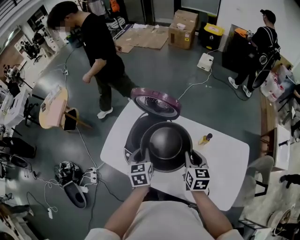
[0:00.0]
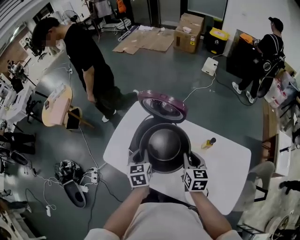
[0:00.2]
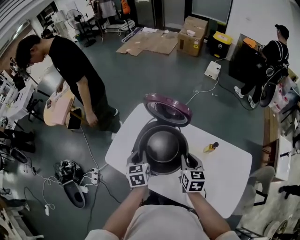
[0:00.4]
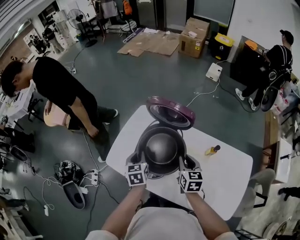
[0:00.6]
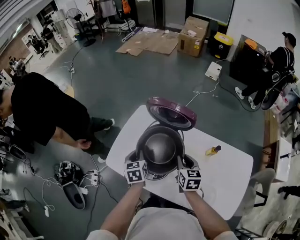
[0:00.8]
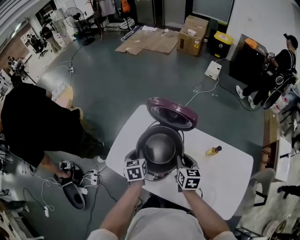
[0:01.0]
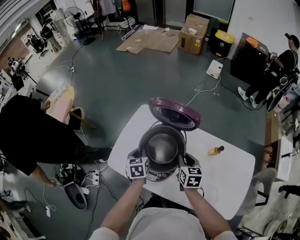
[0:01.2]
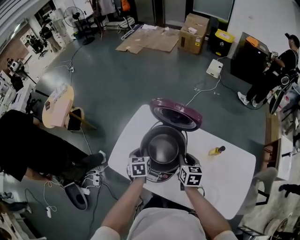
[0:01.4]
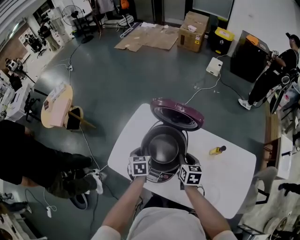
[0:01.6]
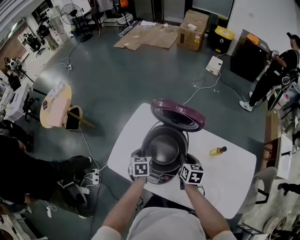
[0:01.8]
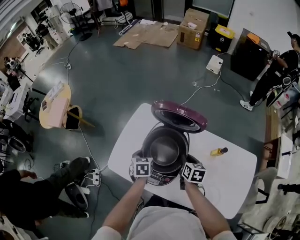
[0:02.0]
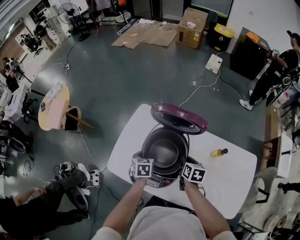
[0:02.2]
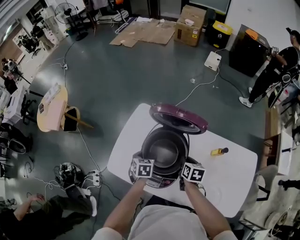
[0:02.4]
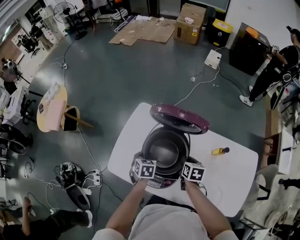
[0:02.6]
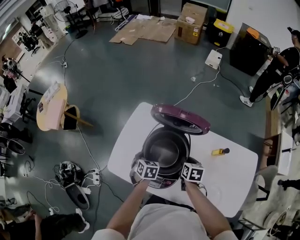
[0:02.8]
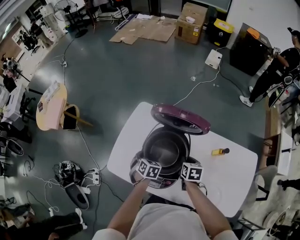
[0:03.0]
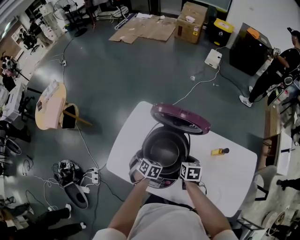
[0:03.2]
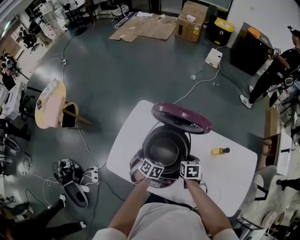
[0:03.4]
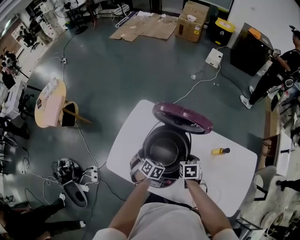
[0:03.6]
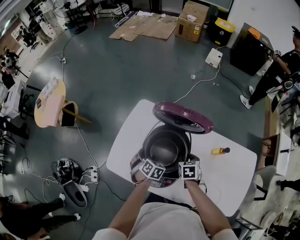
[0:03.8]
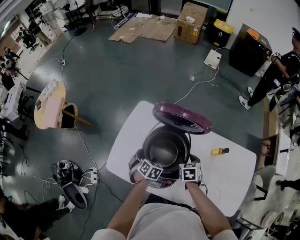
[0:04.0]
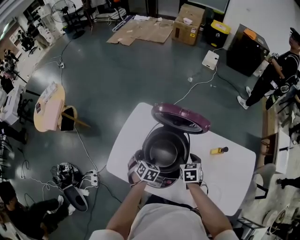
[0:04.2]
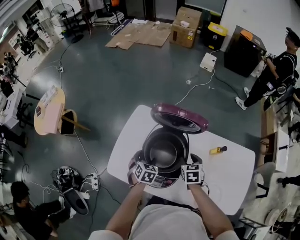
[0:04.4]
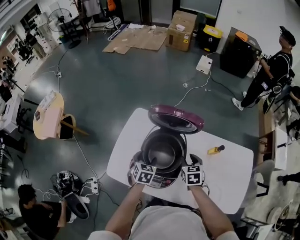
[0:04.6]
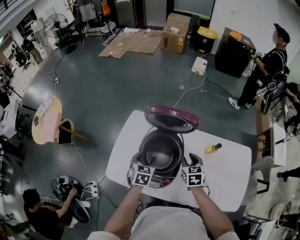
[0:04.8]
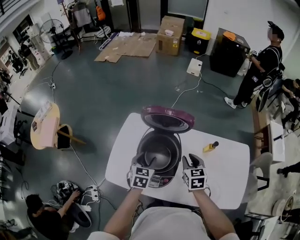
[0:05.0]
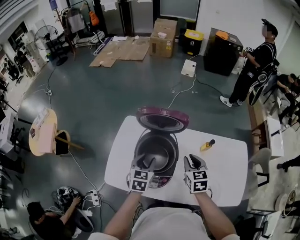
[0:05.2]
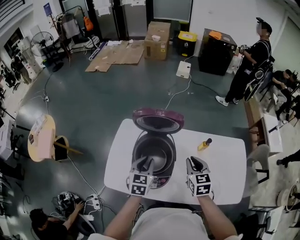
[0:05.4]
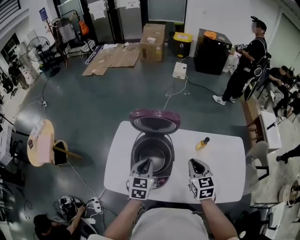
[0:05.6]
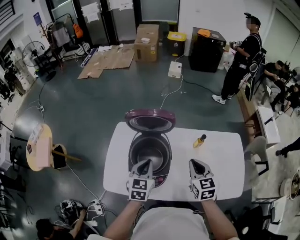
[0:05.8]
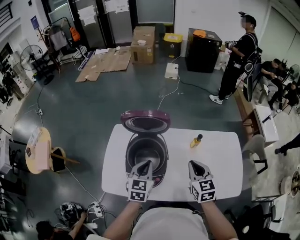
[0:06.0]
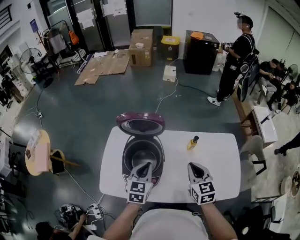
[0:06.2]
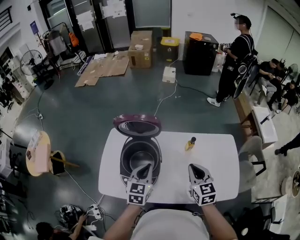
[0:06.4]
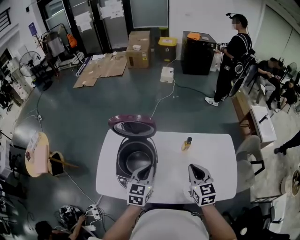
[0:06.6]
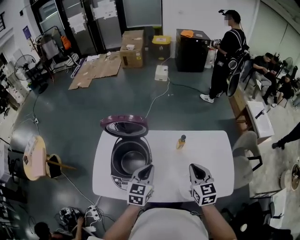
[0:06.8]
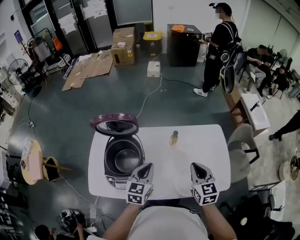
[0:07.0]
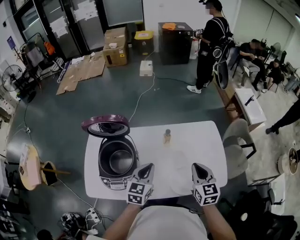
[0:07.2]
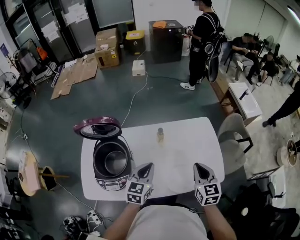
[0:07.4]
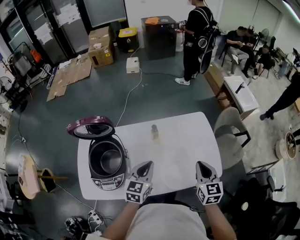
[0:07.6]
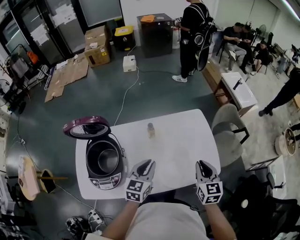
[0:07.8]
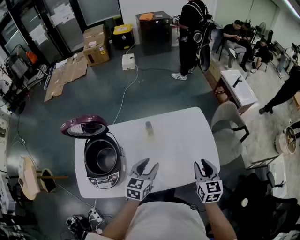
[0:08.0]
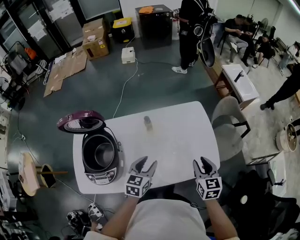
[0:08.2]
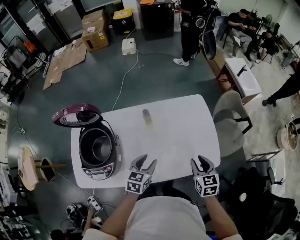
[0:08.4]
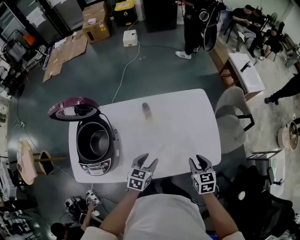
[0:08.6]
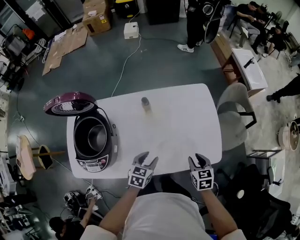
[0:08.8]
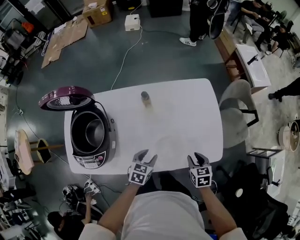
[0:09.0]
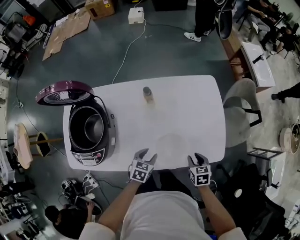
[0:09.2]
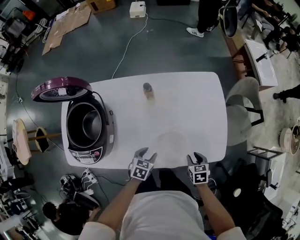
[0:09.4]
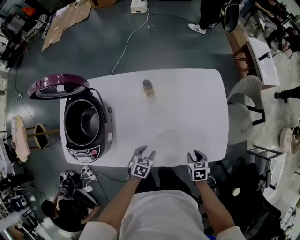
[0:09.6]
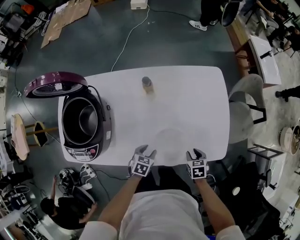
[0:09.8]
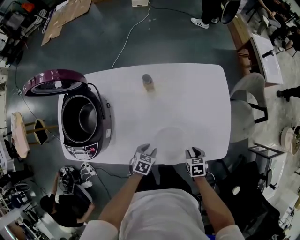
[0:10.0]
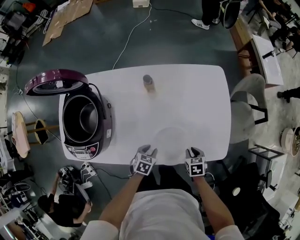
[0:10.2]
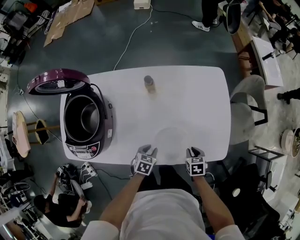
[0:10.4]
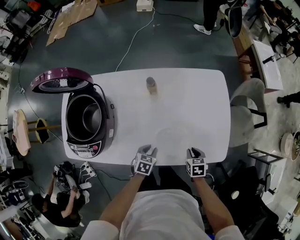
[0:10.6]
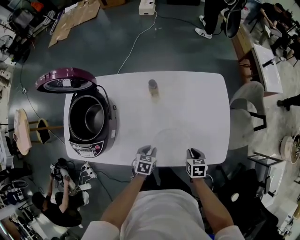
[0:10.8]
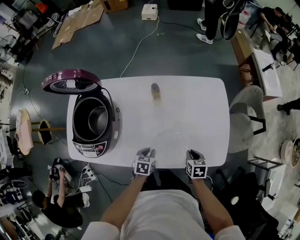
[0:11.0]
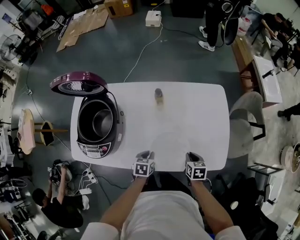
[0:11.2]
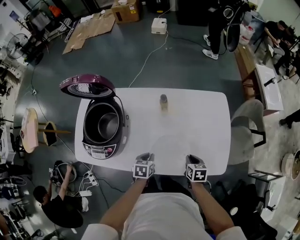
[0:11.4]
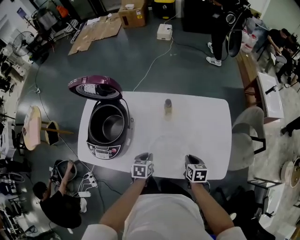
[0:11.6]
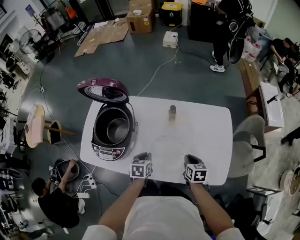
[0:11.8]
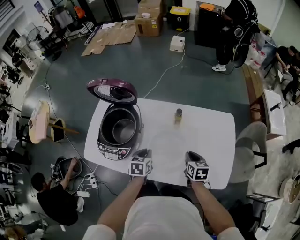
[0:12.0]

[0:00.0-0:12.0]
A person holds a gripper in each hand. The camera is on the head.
0:00.0 to 0:01.6: The grippers both shift to the left, downward and forward by about 15 cm.
0:01.6 to 0:03.0: The two grippers go roughly 5 cm downward. The left gripper changes its angle by about 30 degrees.
0:03.0 to 0:04.4: The right gripper opens up. Meanwhile the left gripper opens up.
0:04.4 to 0:06.0: The left gripper moves upward and to the right, about 20 cm, swivels roughly 30 degrees, and closes up, while the right gripper goes about 25 cm upward, backward and to the right, changes its angle by some 30 degrees, and closes up.
0:06.0 to 0:07.6: Both grippers travel together to the right, roughly 25 cm. The right gripper turns by some 20 degrees. Meanwhile the left gripper rotates roughly 20 degrees.
0:07.6 to 0:09.0: Both grippers move downward, about 25 cm. The left gripper rotates about 30 degrees, and opens its fingers; the right gripper turns by some 30 degrees, and opens its fingers.
0:09.0 to 0:10.4: Both grippers travel together downward, some 10 cm.
0:10.4 to 0:12.0: The left gripper goes about 25 cm upward and to the left, and rotates approximately 30 degrees; the right gripper goes approximately 25 cm upward, to the left and forward, and rotates some 20 degrees.

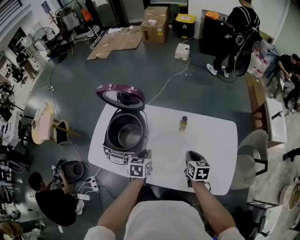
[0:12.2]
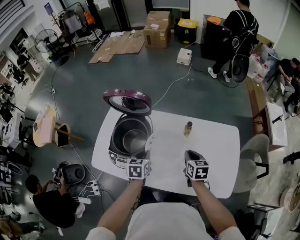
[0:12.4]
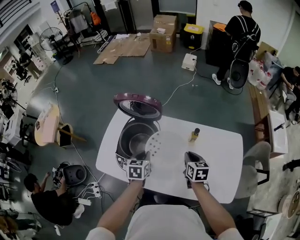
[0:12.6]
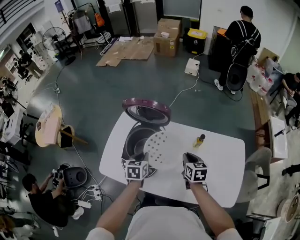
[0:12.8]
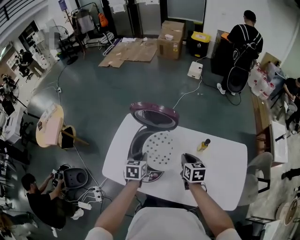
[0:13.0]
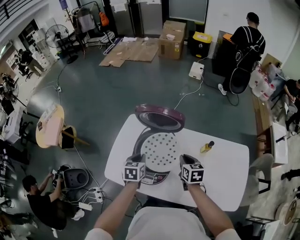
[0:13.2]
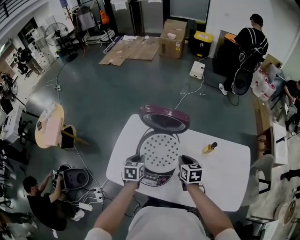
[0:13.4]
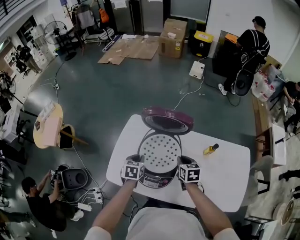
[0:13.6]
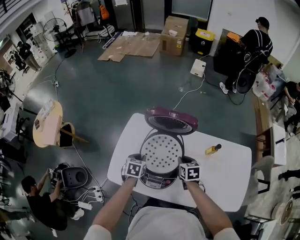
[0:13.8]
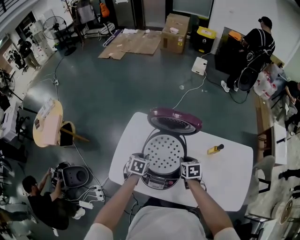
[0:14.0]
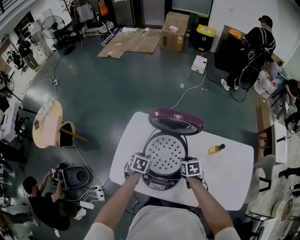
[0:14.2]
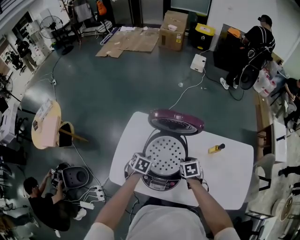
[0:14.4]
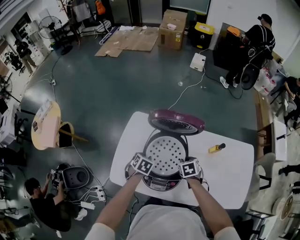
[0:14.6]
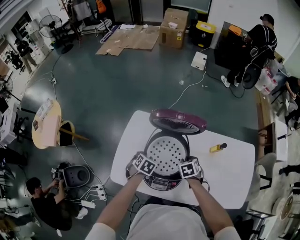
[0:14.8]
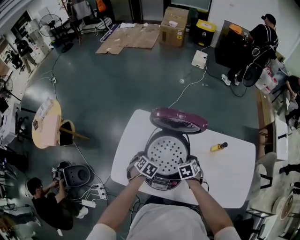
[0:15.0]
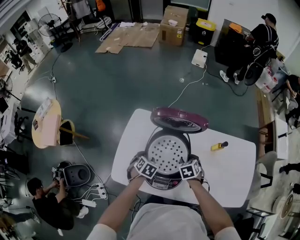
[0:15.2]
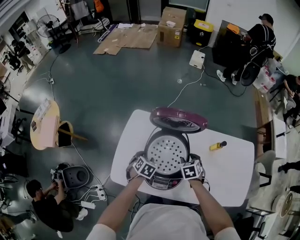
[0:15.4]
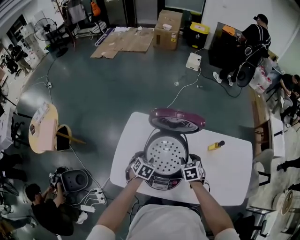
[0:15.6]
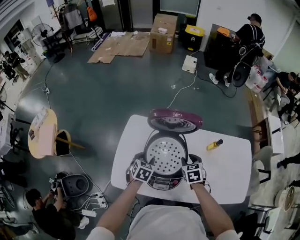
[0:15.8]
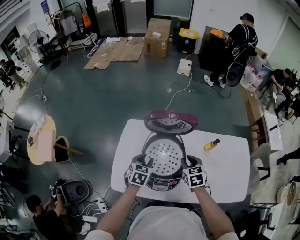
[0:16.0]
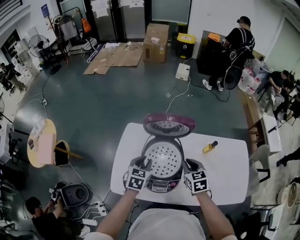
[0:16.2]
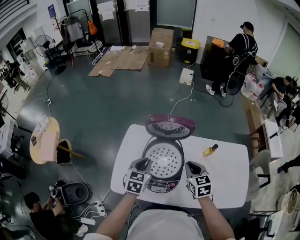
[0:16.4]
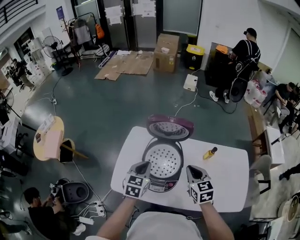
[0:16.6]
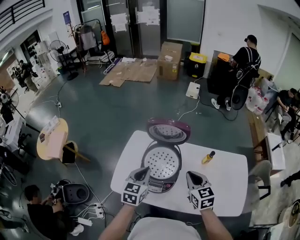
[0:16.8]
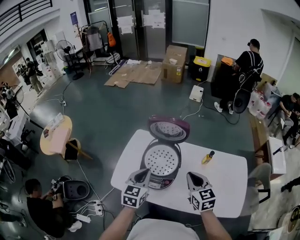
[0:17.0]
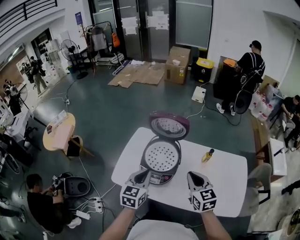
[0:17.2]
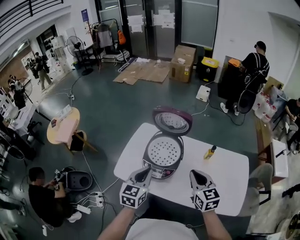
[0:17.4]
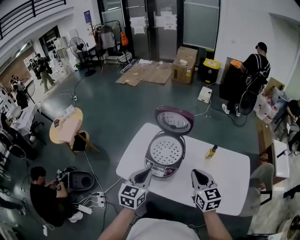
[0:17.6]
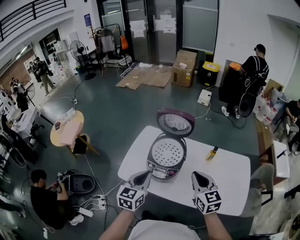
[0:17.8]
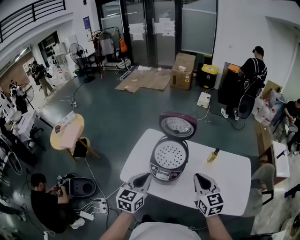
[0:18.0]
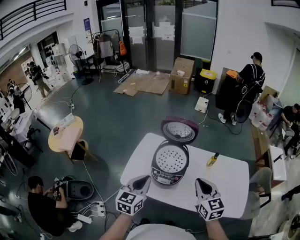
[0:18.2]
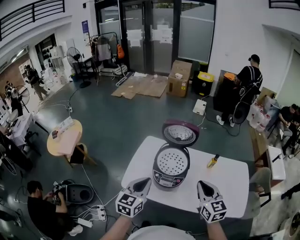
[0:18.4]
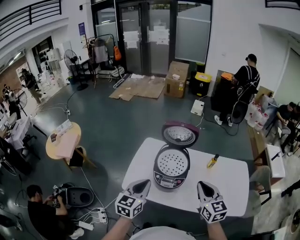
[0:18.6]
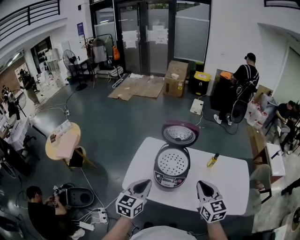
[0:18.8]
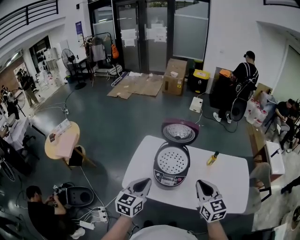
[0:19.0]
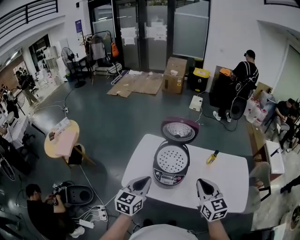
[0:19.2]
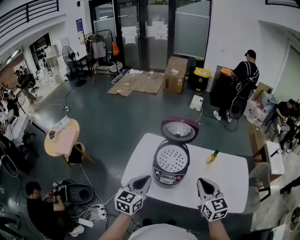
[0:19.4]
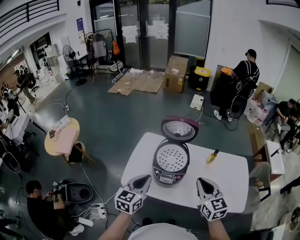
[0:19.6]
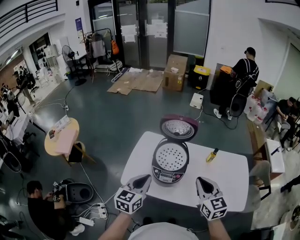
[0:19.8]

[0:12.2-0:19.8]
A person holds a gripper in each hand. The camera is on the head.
0:12.2 to 0:13.8: The two grippers go roughly 30 cm to the left and forward.
0:13.8 to 0:15.2: The left gripper moves downward, about 5 cm, turns by about 20 degrees, and opens up, while the right gripper turns by about 20 degrees, and opens its fingers.
0:15.2 to 0:16.8: The left gripper heads upward, covering roughly 25 cm, tilts its fingers roughly 40 degrees upward, and closes its fingers. The right gripper goes roughly 25 cm upward and backward, tips its fingers upward by approximately 40 degrees, and closes.
0:16.8 to 0:18.2: Both grippers move backward and upward, approximately 15 cm.
0:18.2 to 0:19.8: The grippers make only small movements.

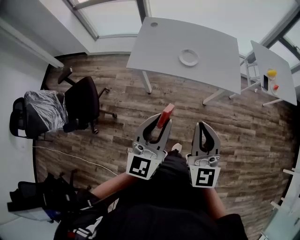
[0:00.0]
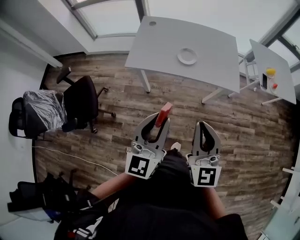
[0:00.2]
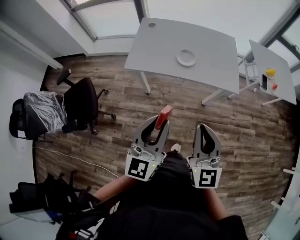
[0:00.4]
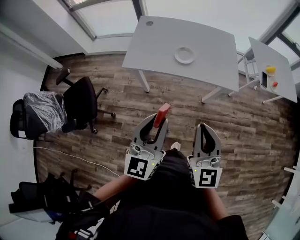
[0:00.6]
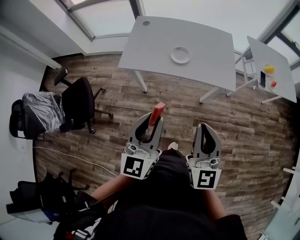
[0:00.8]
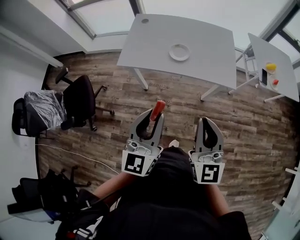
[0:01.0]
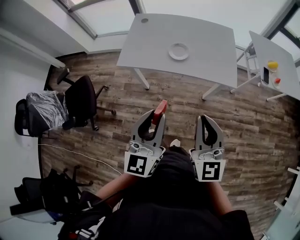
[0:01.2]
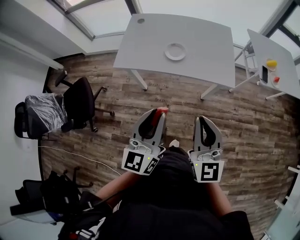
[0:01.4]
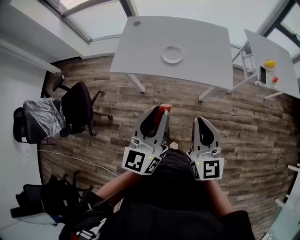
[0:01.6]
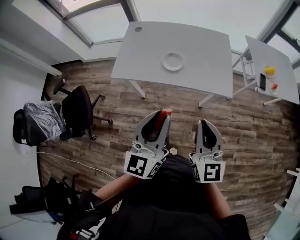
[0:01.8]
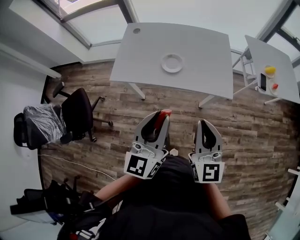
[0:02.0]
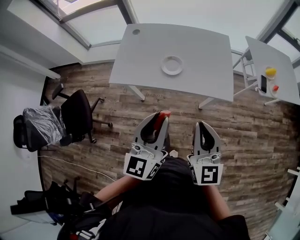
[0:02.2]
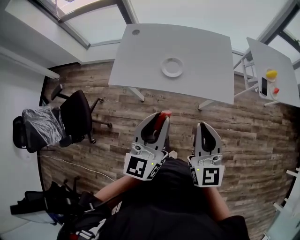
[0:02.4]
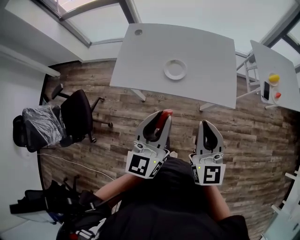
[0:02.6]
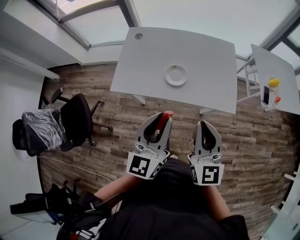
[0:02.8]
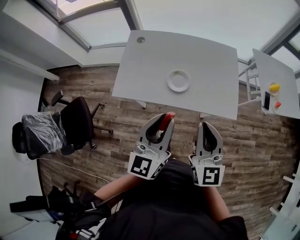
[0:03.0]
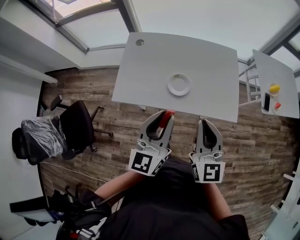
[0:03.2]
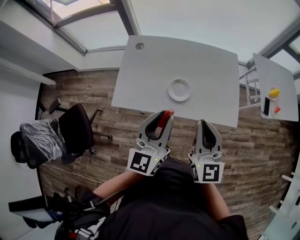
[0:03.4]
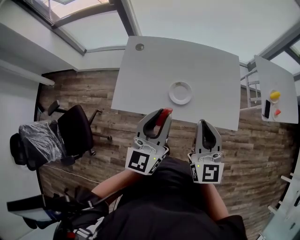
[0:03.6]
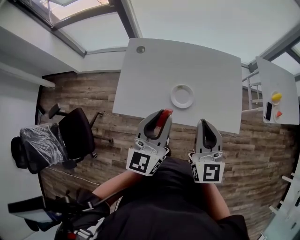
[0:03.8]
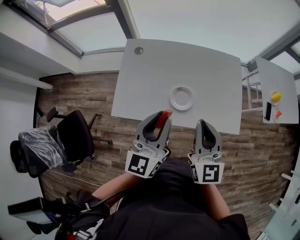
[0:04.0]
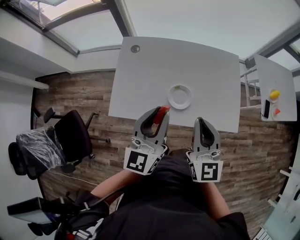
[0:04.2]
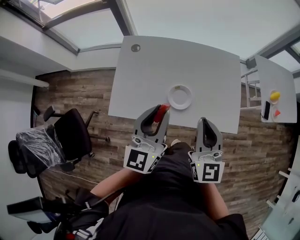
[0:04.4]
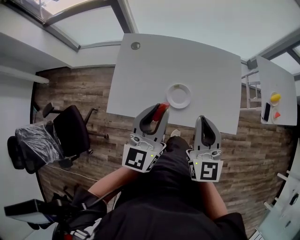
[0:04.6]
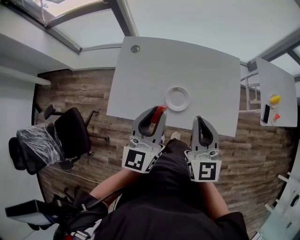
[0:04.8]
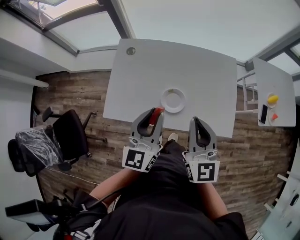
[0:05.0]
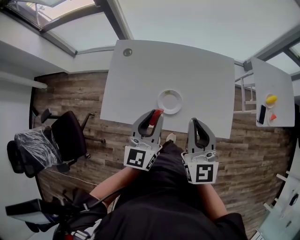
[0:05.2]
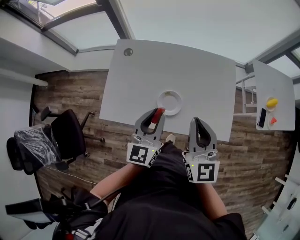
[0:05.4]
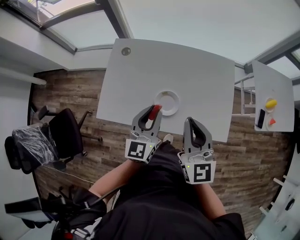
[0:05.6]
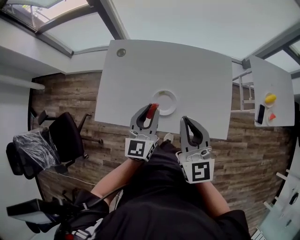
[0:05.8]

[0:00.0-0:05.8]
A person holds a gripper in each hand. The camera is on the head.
0:00.0 to 0:01.4: Both grippers travel together to the right, approximately 10 cm.
0:01.4 to 0:02.8: Both grippers move forward, approximately 15 cm.
0:02.8 to 0:04.4: Both grippers move forward and to the left, approximately 20 cm.
0:04.4 to 0:05.8: The right gripper changes place by some 5 cm, while the left gripper heads downward, forward and to the right, covering some 15 cm.
